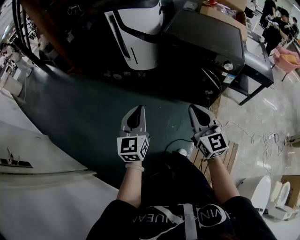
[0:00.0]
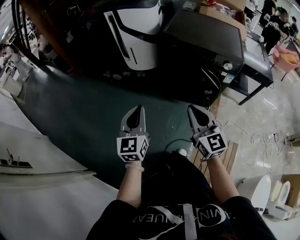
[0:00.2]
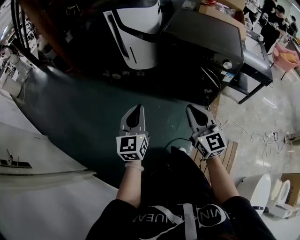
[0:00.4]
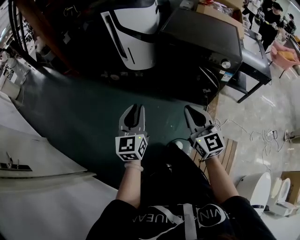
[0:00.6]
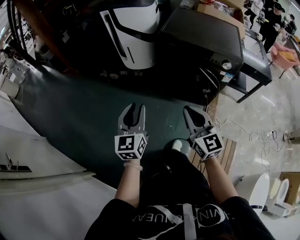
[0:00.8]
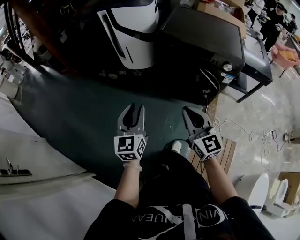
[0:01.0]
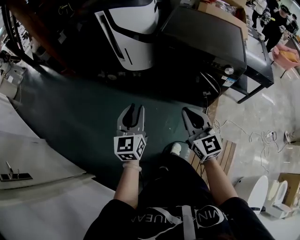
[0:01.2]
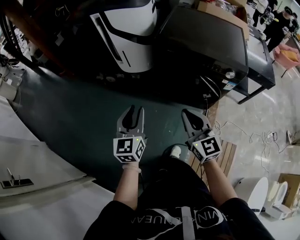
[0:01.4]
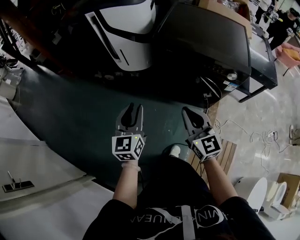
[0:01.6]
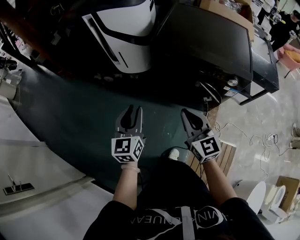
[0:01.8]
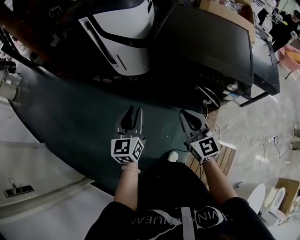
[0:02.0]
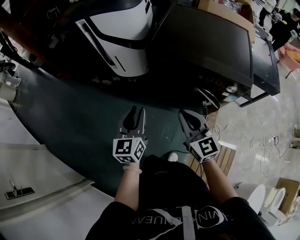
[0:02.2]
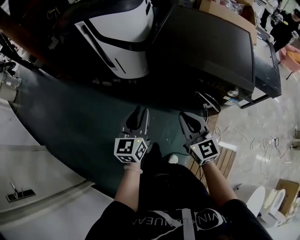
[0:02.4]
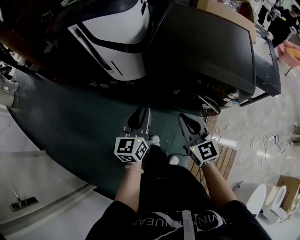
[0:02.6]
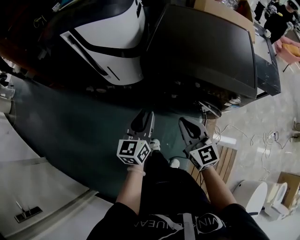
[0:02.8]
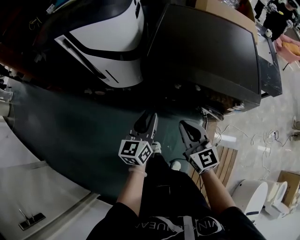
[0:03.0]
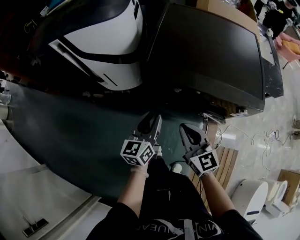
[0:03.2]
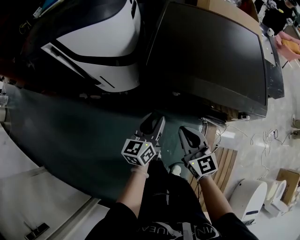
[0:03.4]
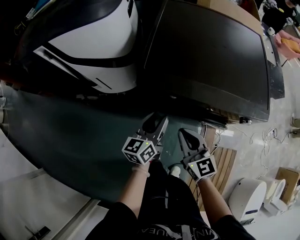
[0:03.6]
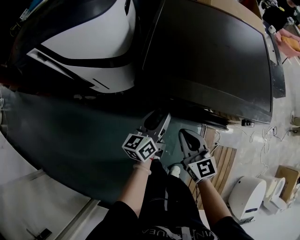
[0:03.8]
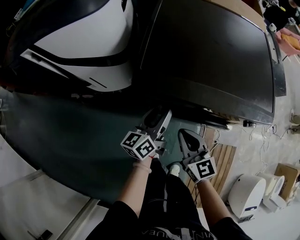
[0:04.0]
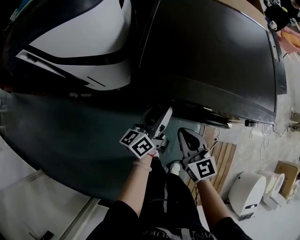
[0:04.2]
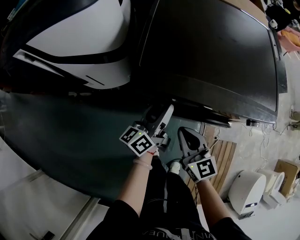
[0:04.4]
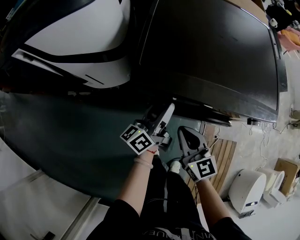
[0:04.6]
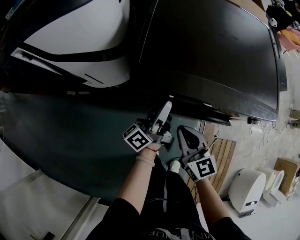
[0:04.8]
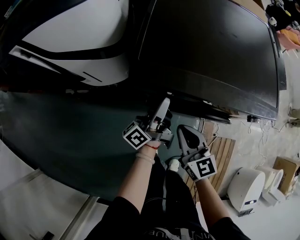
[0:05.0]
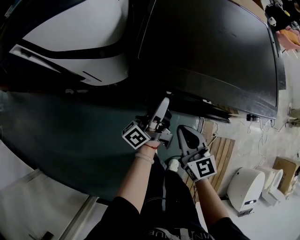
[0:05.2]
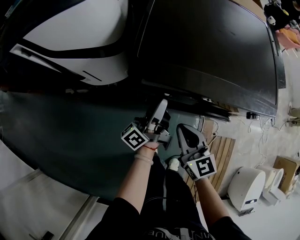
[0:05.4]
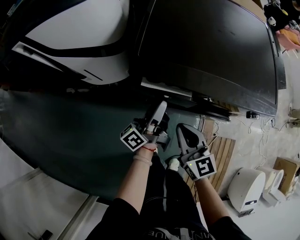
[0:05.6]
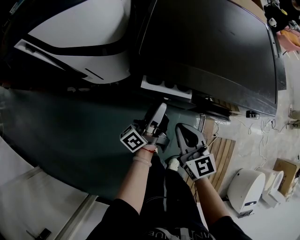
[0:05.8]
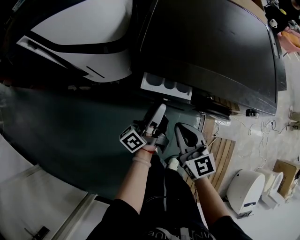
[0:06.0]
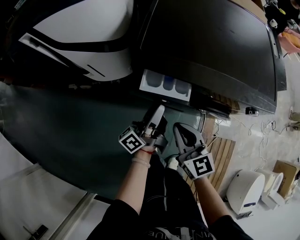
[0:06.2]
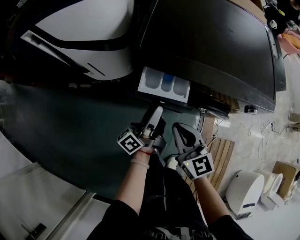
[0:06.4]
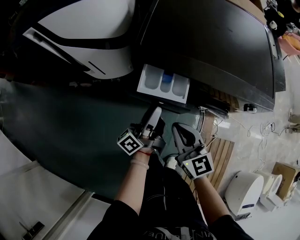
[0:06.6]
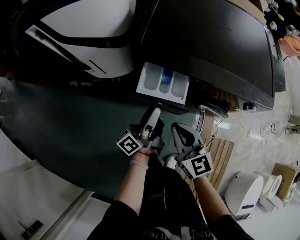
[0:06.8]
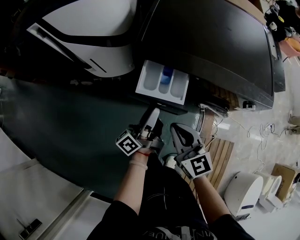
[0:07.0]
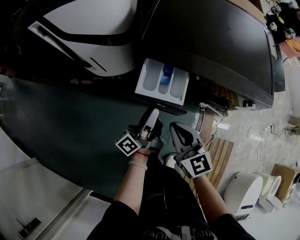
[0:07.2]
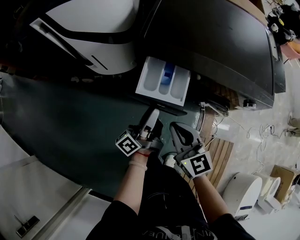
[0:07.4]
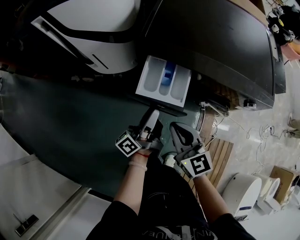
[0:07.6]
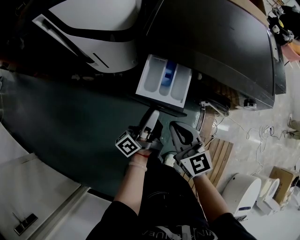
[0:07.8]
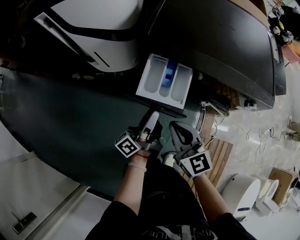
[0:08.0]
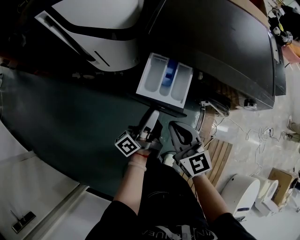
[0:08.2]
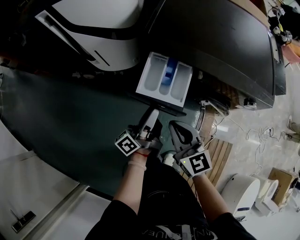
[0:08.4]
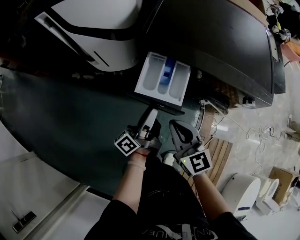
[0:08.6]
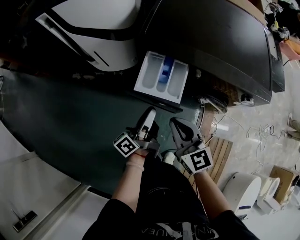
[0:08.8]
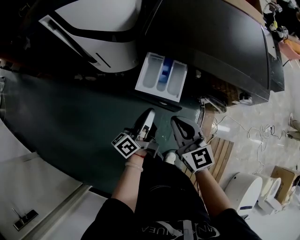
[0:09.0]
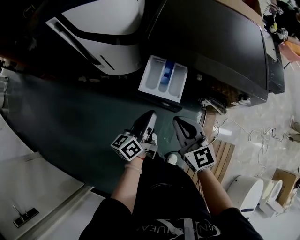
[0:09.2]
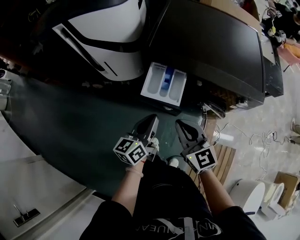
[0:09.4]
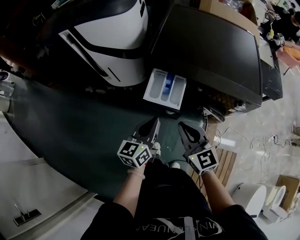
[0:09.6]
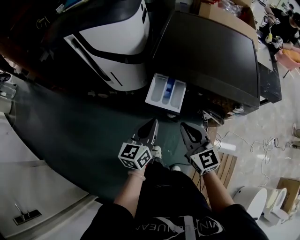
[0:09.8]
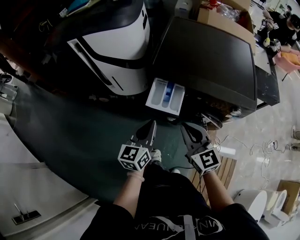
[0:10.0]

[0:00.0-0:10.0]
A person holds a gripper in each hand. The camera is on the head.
0:00.0 to 0:01.4: The grippers both shift forward by approximately 10 cm. The left gripper opens up.
0:01.4 to 0:02.8: The right gripper heads forward, covering some 20 cm. Meanwhile the left gripper heads forward and to the right, covering some 20 cm.
0:02.8 to 0:04.2: Both grippers move forward and downward, about 20 cm. The left gripper turns by some 40 degrees.
0:04.2 to 0:05.8: The left gripper rotates some 30 degrees.
0:05.8 to 0:07.2: The grippers both shift backward by roughly 5 cm.
0:07.2 to 0:08.6: The grippers move only a little.
0:08.6 to 0:10.0: The grippers both shift upward by roughly 10 cm. The left gripper rolls clockwise, seen from behind, by roughly 50 degrees, and closes its fingers.

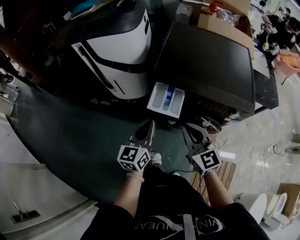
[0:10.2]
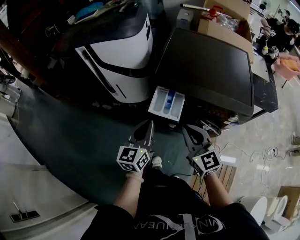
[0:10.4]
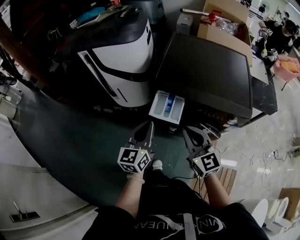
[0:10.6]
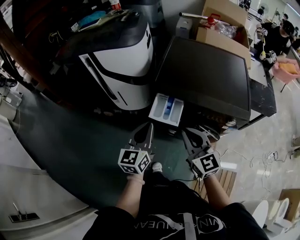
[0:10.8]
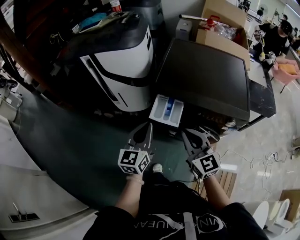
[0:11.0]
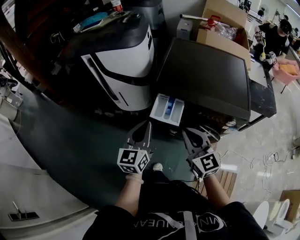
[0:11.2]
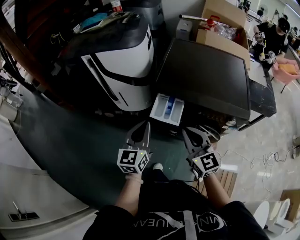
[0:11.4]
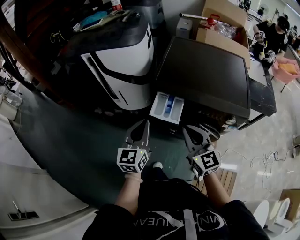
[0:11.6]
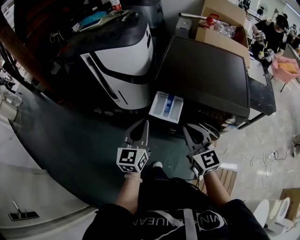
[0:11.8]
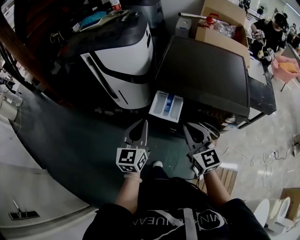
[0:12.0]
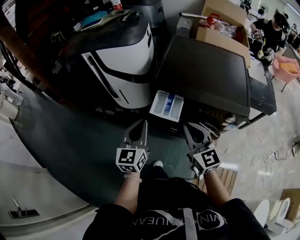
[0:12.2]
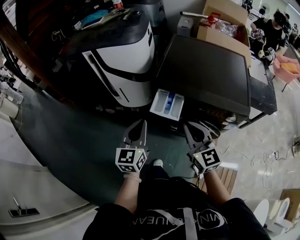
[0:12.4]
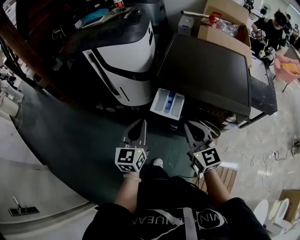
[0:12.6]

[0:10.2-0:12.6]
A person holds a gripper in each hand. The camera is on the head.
0:10.2 to 0:11.4: The left gripper heads upward, covering about 5 cm.
0:11.4 to 0:12.6: The grippers make only small movements.

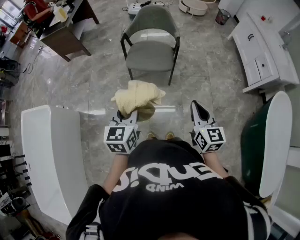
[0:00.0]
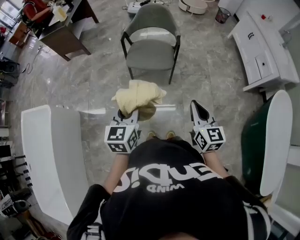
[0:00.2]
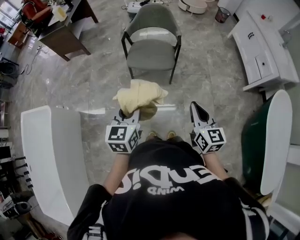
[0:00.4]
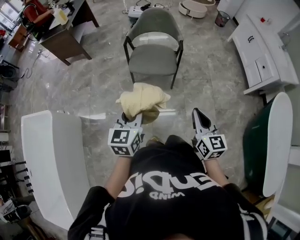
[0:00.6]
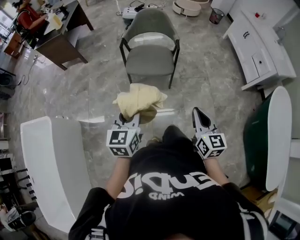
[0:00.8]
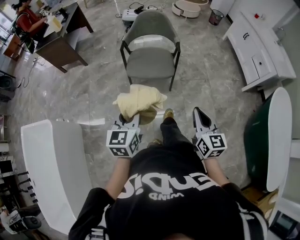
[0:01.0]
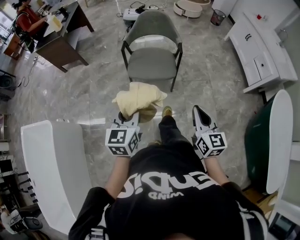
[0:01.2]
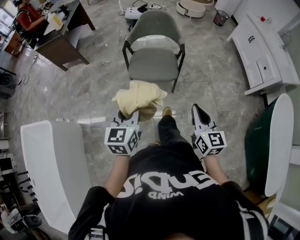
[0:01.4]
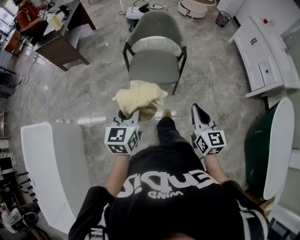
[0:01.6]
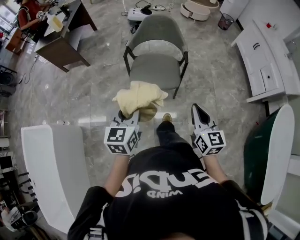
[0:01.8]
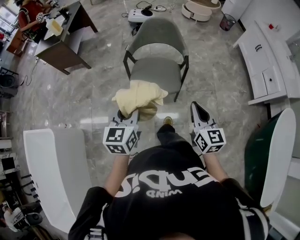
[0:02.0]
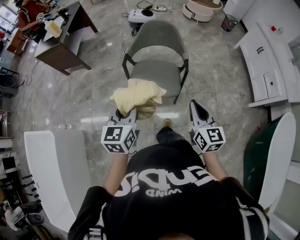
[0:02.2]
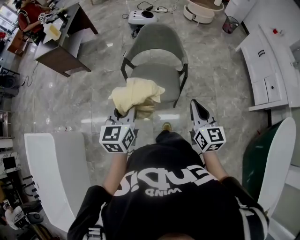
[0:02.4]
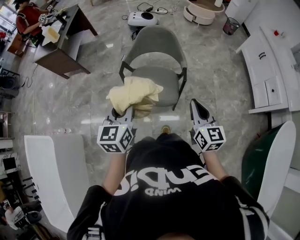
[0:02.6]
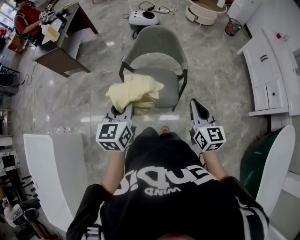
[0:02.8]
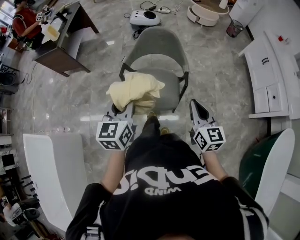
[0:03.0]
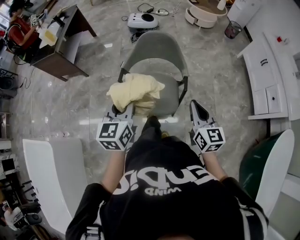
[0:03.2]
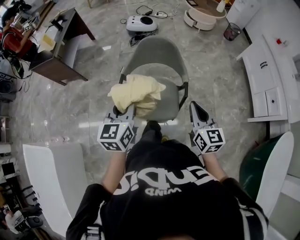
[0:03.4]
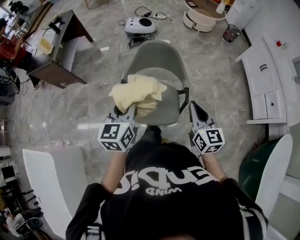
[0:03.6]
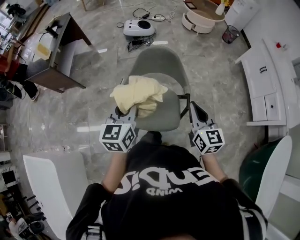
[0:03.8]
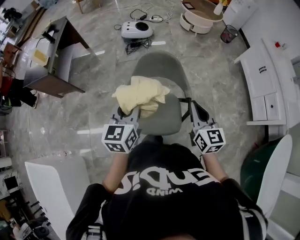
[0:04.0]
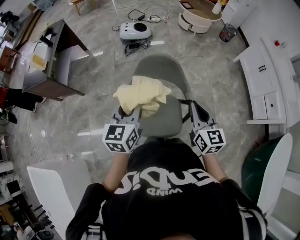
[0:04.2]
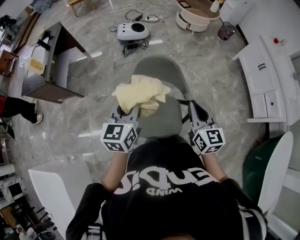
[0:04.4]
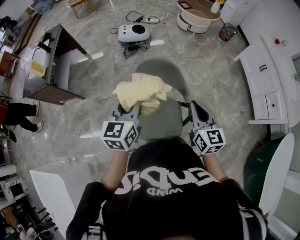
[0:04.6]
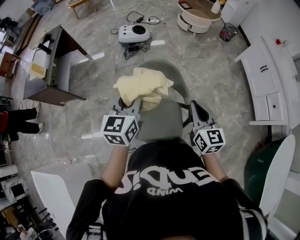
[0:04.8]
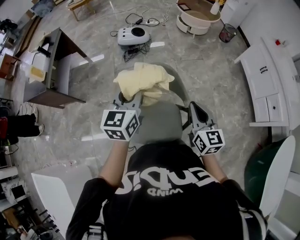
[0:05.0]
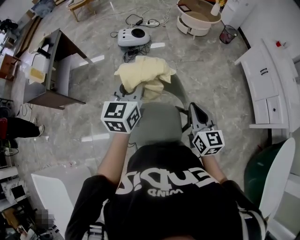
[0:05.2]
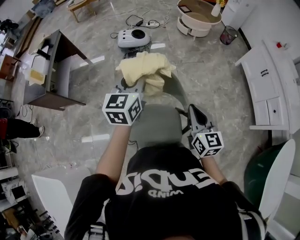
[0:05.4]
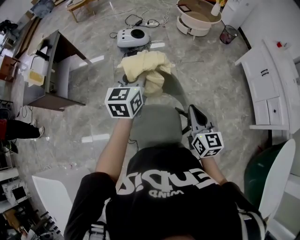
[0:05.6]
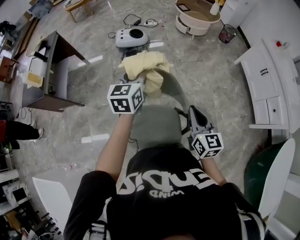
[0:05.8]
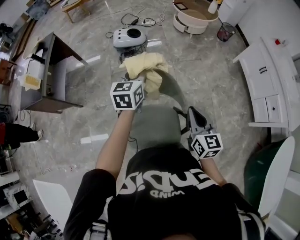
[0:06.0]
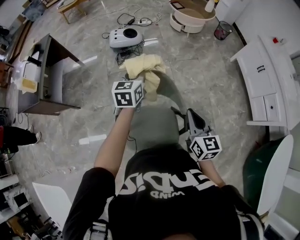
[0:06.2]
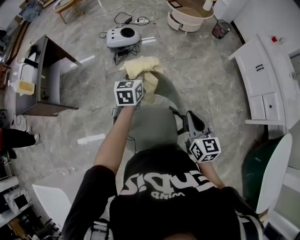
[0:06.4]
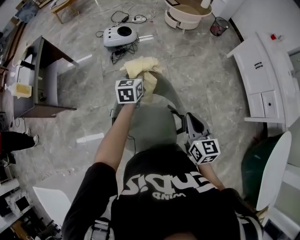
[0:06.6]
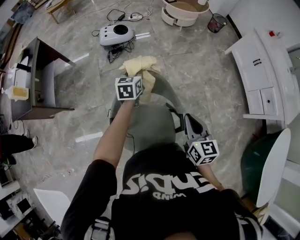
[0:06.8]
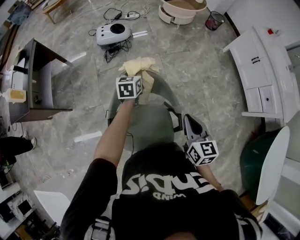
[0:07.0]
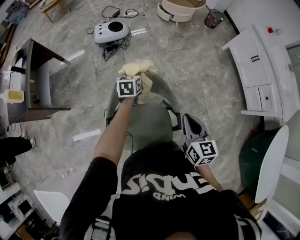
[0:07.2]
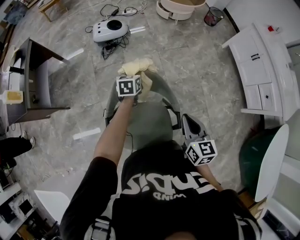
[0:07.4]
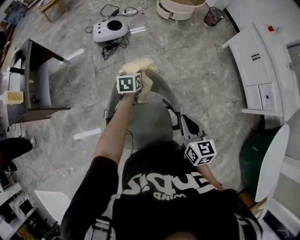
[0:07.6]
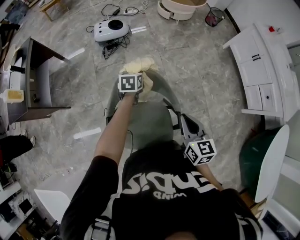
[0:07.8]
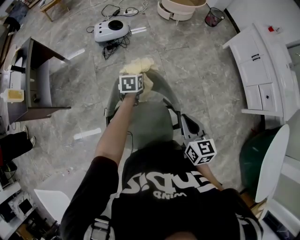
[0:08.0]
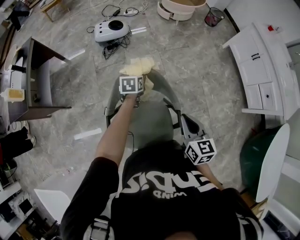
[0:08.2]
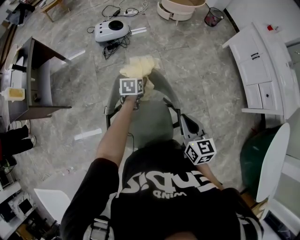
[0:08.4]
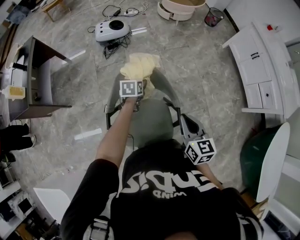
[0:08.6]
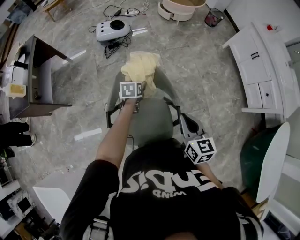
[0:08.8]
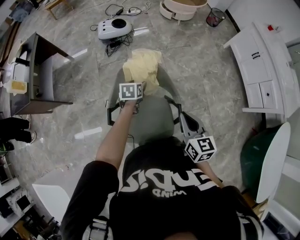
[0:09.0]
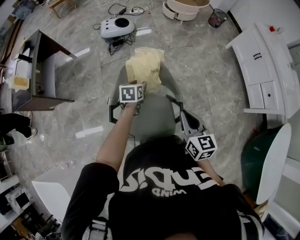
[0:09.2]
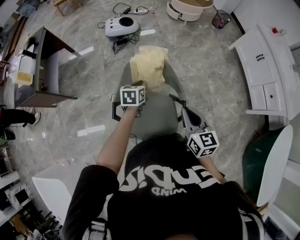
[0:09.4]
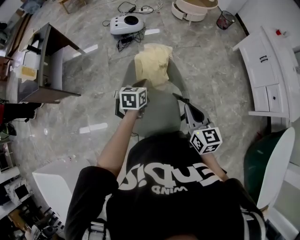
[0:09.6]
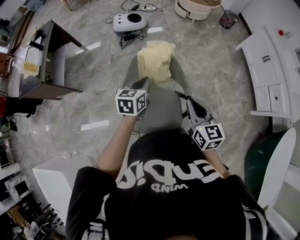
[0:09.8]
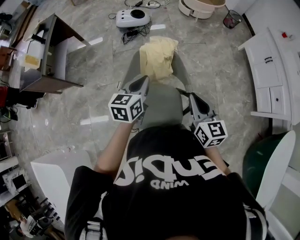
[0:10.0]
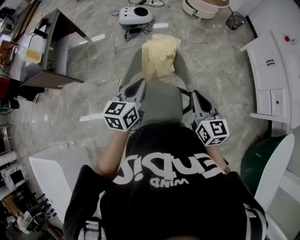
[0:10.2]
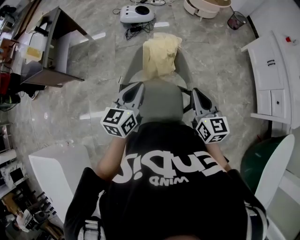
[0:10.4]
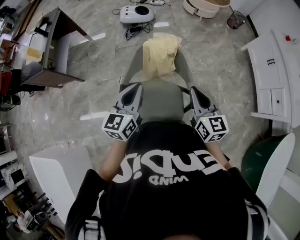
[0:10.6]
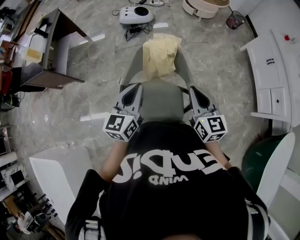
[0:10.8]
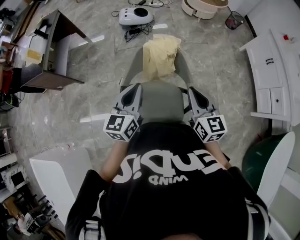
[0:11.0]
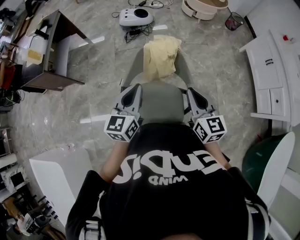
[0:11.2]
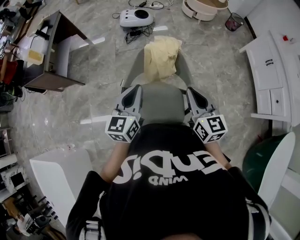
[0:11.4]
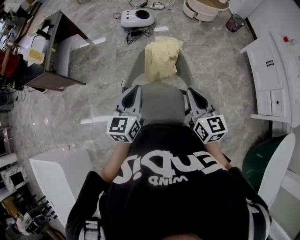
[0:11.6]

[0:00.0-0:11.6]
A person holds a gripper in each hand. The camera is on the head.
0:00.0 to 0:01.4: Both grippers travel together forward and to the left, some 10 cm.
0:01.4 to 0:02.8: The grippers both shift forward by approximately 30 cm.
0:02.8 to 0:04.4: The grippers both shift forward by some 25 cm.
0:04.4 to 0:05.8: The right gripper goes some 10 cm forward. The left gripper goes approximately 20 cm forward.
0:05.8 to 0:07.2: The right gripper changes place by about 5 cm. The left gripper heads downward and forward, covering roughly 25 cm, and rotates approximately 20 degrees.
0:07.2 to 0:08.8: The left gripper heads backward and downward, covering approximately 10 cm, and opens.
0:08.8 to 0:10.2: The left gripper heads upward and backward, covering some 25 cm, tips its fingers upward by roughly 30 degrees, and closes its fingers.
0:10.2 to 0:11.6: The left gripper changes place by approximately 5 cm.
